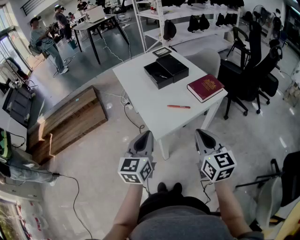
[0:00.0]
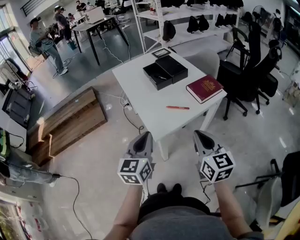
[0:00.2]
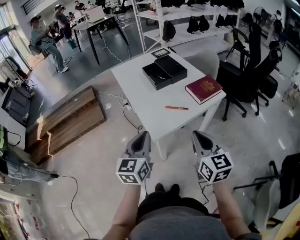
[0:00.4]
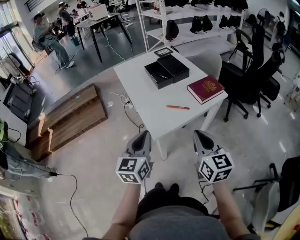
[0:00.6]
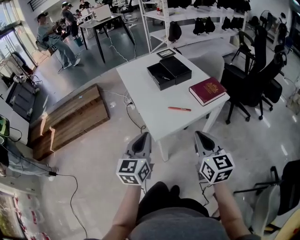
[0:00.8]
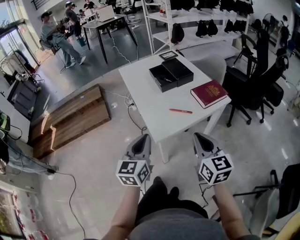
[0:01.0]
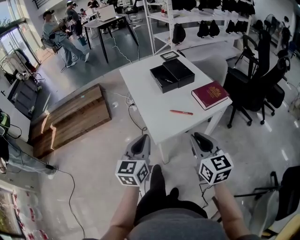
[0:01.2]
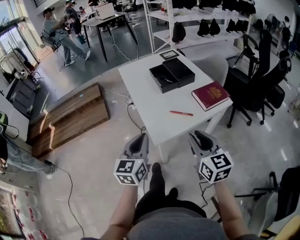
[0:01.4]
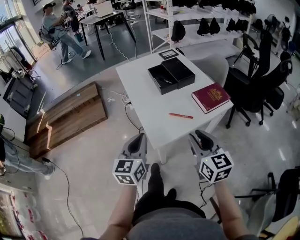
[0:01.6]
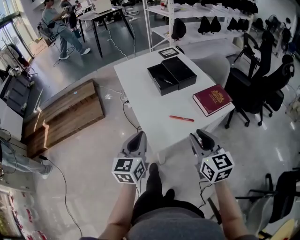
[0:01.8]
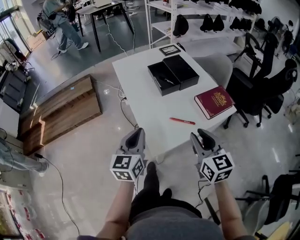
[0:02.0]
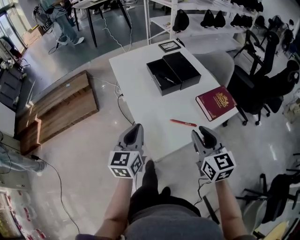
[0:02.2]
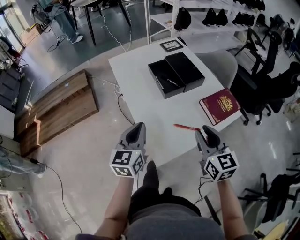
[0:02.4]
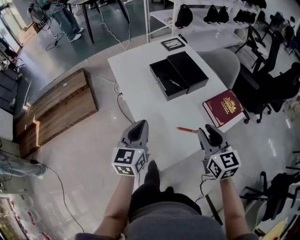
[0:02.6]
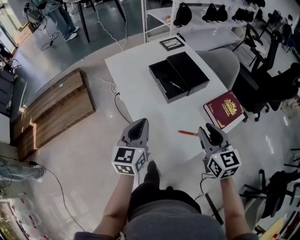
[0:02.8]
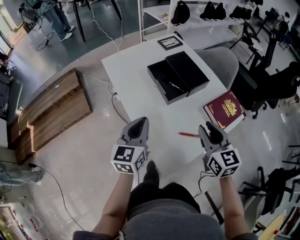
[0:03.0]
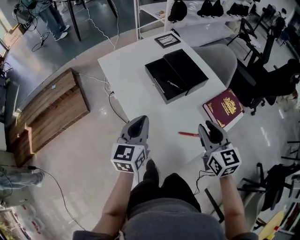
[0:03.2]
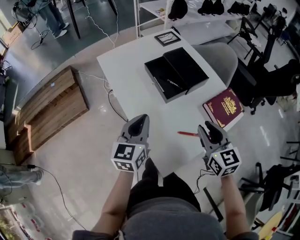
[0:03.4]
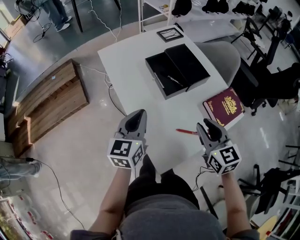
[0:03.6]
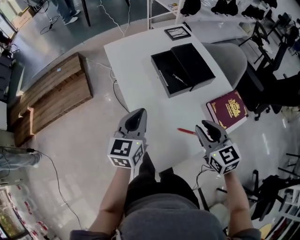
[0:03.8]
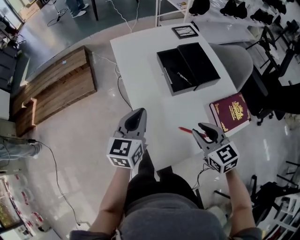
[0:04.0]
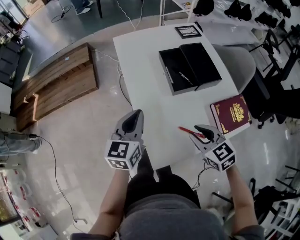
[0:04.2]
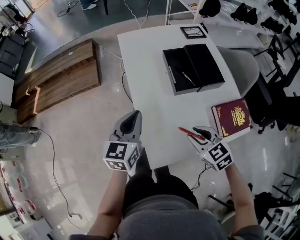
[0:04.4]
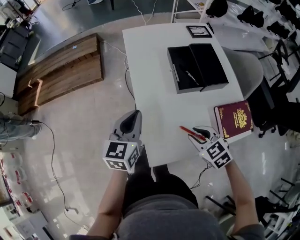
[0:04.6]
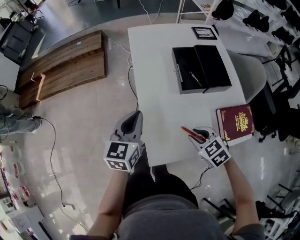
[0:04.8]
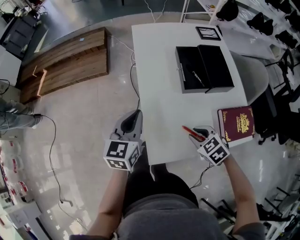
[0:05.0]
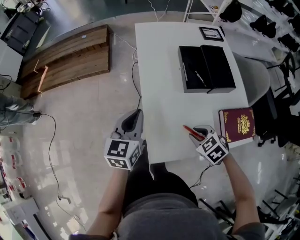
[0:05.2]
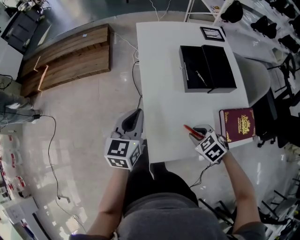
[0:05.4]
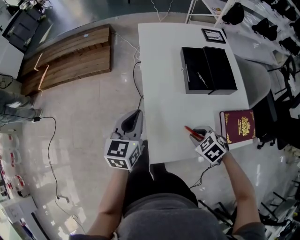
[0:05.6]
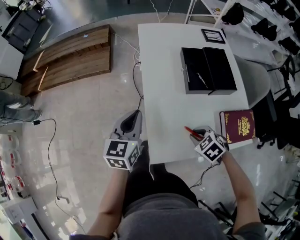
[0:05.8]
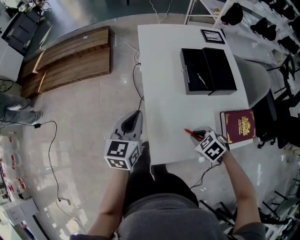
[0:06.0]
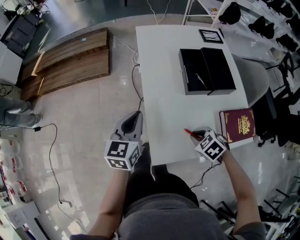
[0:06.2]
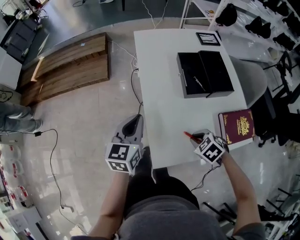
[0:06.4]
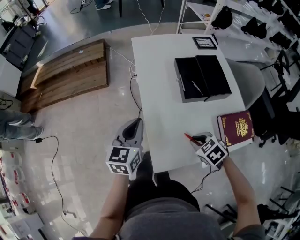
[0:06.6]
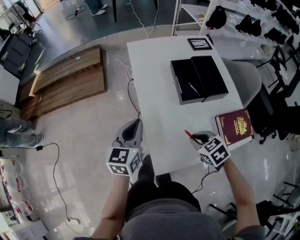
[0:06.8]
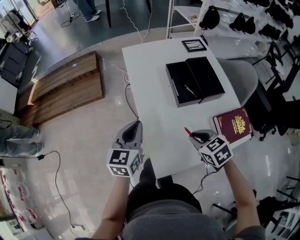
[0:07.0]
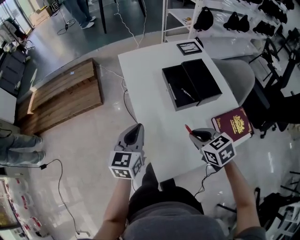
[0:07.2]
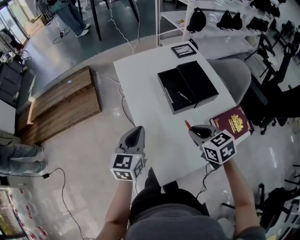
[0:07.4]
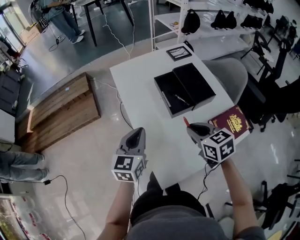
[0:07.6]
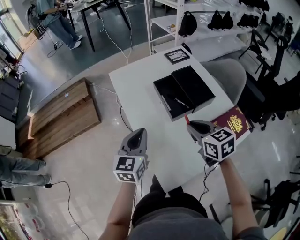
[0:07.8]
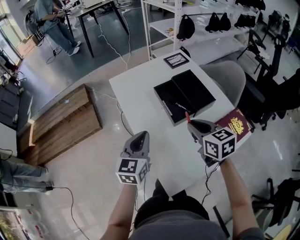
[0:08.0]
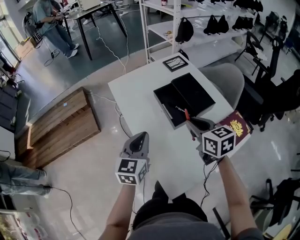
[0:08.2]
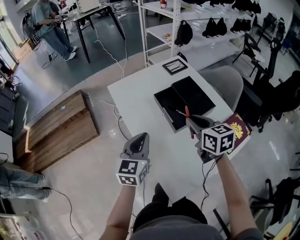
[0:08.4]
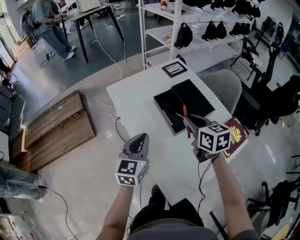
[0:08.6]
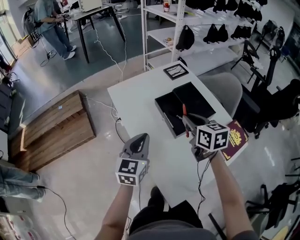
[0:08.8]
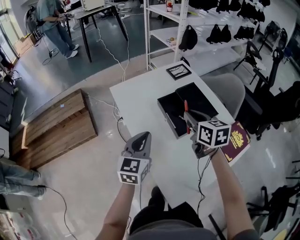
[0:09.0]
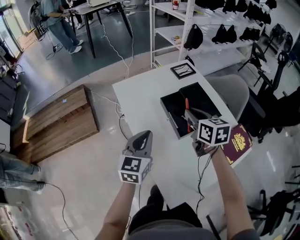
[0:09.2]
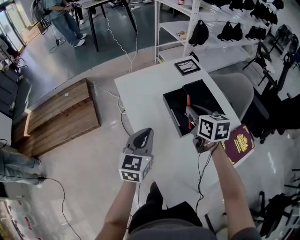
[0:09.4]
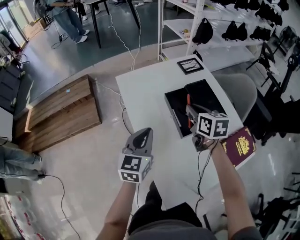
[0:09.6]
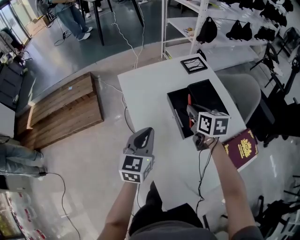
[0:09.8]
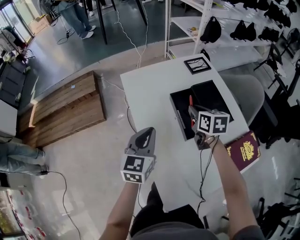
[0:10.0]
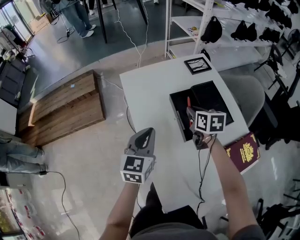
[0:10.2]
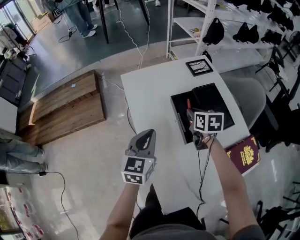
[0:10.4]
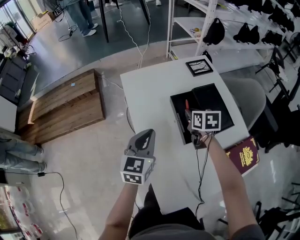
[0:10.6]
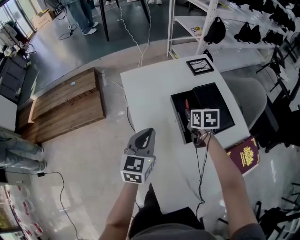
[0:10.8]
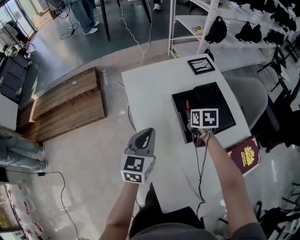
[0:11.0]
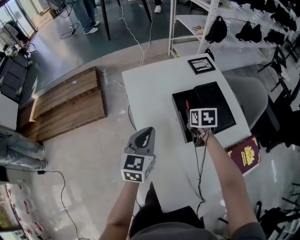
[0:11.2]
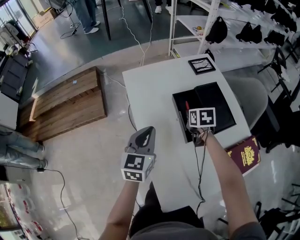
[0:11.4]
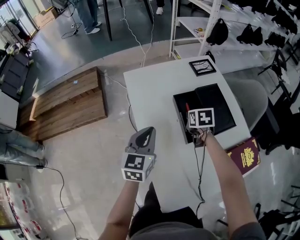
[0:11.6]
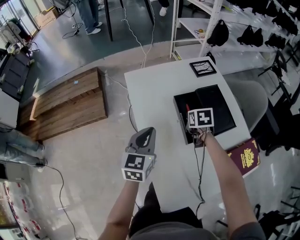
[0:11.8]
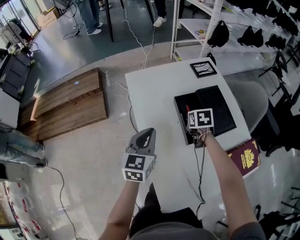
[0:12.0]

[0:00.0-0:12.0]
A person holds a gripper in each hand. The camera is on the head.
0:00.0 to 0:01.6: The left gripper ends up approximately 5 cm from where it was; the right gripper heads forward, covering about 5 cm, and opens.
0:01.6 to 0:03.0: Both grippers travel together forward, some 20 cm.
0:03.0 to 0:04.4: The right gripper heads downward, covering approximately 10 cm, and rotates some 50 degrees.
0:04.4 to 0:06.0: The right gripper travels downward by roughly 10 cm, and rotates approximately 30 degrees.
0:06.0 to 0:07.6: The right gripper is displaced upward and forward by approximately 15 cm, and tilts its fingers approximately 30 degrees upward. Meanwhile the left gripper moves to the right and forward, about 10 cm.
0:07.6 to 0:09.0: The right gripper travels forward by roughly 15 cm, and swivels about 20 degrees. Meanwhile the left gripper goes some 10 cm forward.
0:09.0 to 0:10.4: The right gripper goes roughly 15 cm downward and forward.
0:10.4 to 0:12.0: The right gripper heads downward, covering about 5 cm.

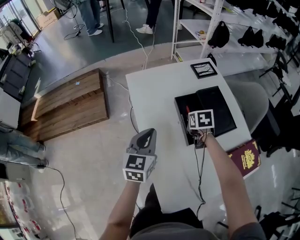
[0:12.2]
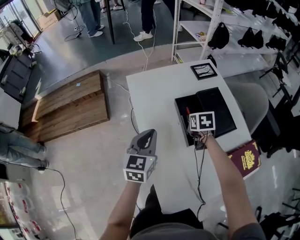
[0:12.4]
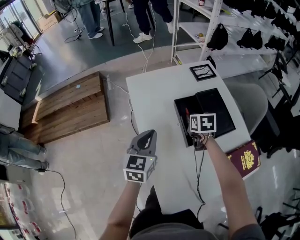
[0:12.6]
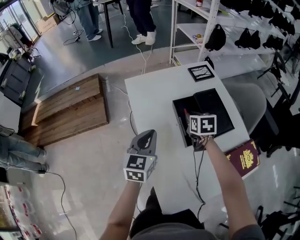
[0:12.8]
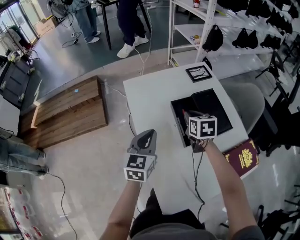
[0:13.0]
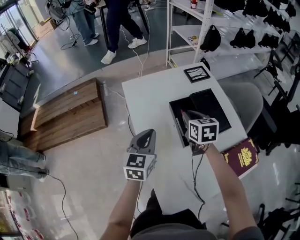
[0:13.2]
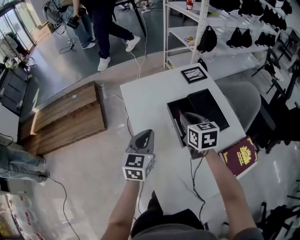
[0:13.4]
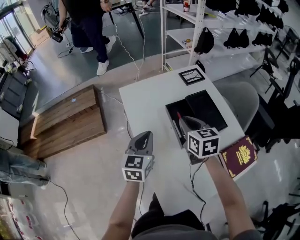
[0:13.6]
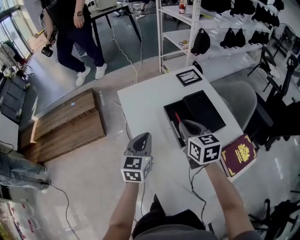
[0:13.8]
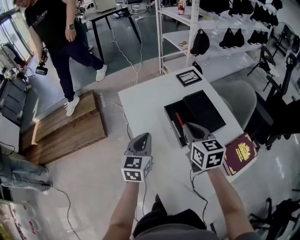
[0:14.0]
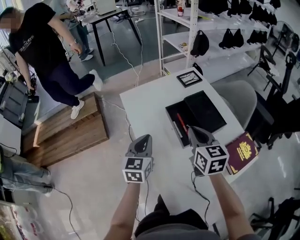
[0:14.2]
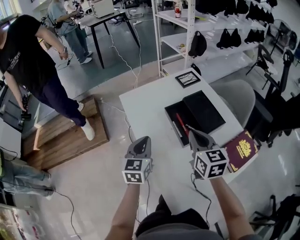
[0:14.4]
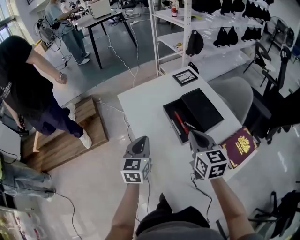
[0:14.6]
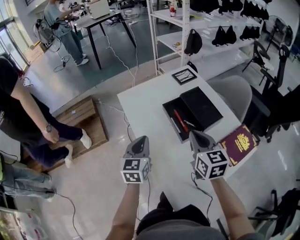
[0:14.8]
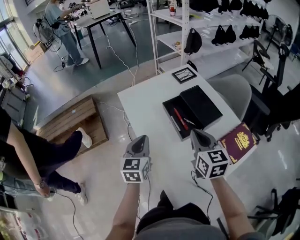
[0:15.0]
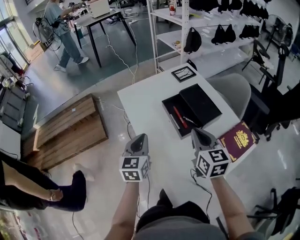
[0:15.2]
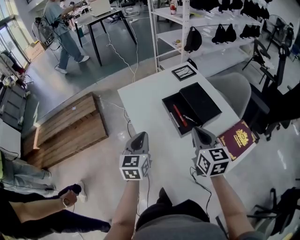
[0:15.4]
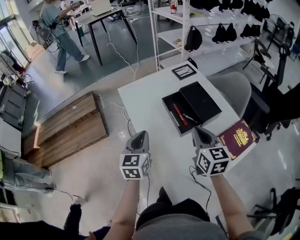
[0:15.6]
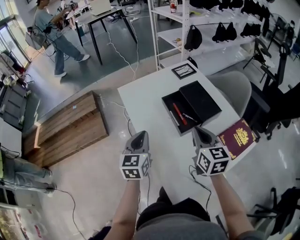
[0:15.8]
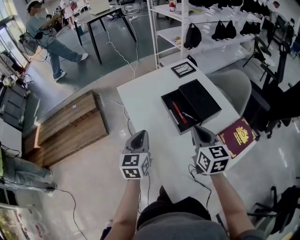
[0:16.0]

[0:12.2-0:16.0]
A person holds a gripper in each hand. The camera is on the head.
0:12.2 to 0:13.4: The right gripper is displaced upward by about 15 cm, and rotates some 20 degrees.
0:13.4 to 0:14.8: The right gripper moves backward, about 15 cm.
0:14.8 to 0:16.0: The grippers make only small movements.

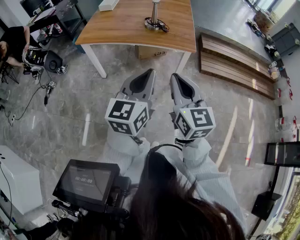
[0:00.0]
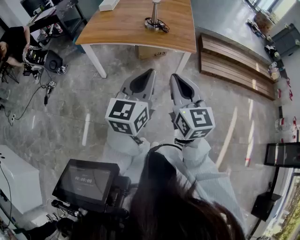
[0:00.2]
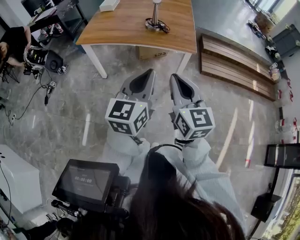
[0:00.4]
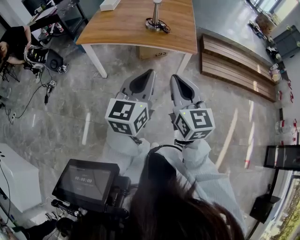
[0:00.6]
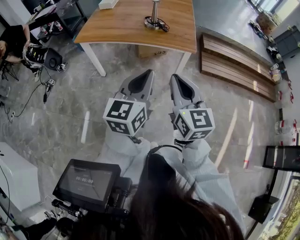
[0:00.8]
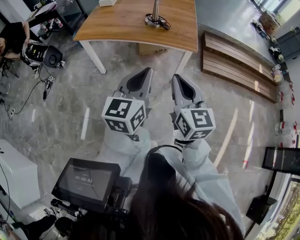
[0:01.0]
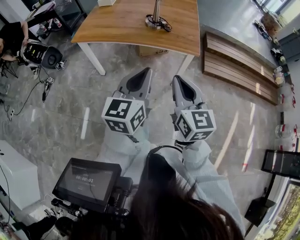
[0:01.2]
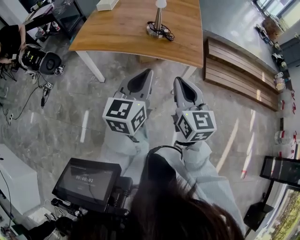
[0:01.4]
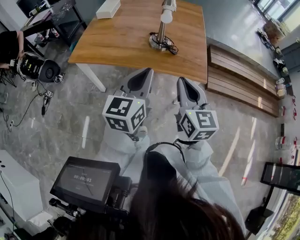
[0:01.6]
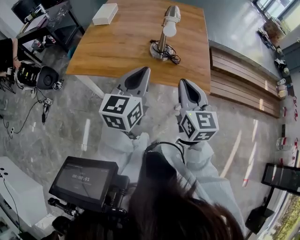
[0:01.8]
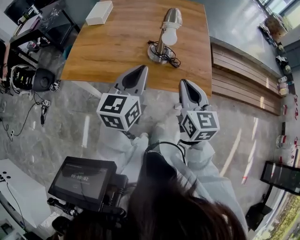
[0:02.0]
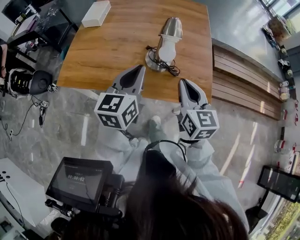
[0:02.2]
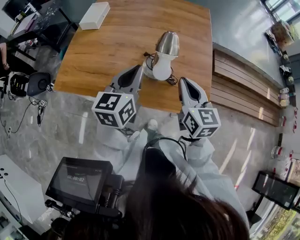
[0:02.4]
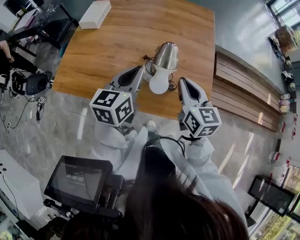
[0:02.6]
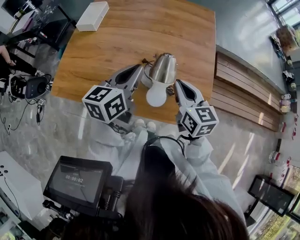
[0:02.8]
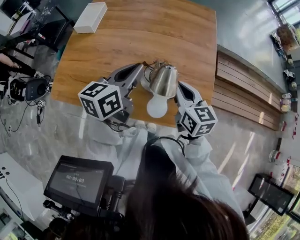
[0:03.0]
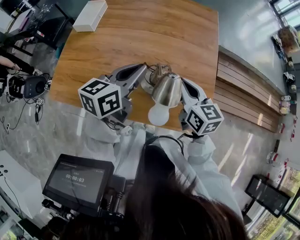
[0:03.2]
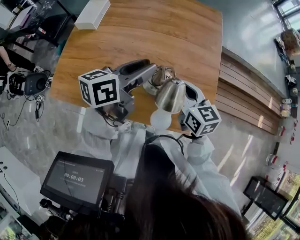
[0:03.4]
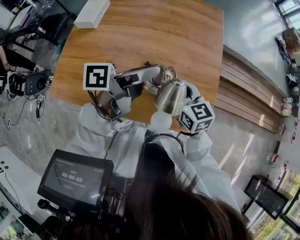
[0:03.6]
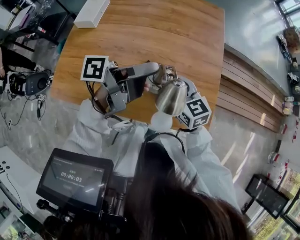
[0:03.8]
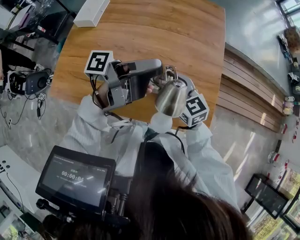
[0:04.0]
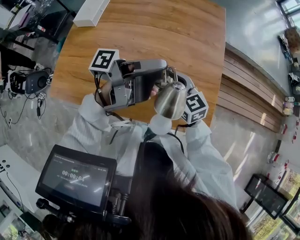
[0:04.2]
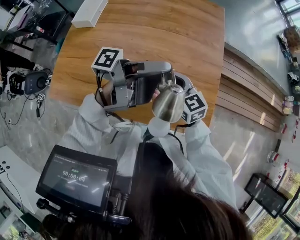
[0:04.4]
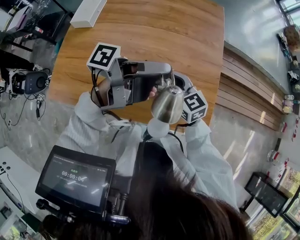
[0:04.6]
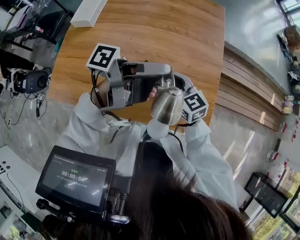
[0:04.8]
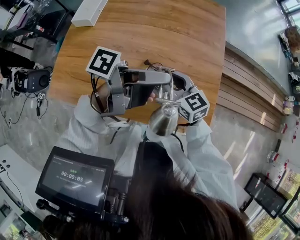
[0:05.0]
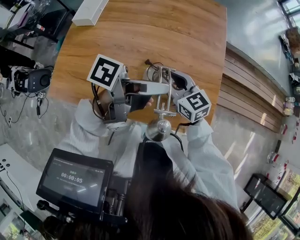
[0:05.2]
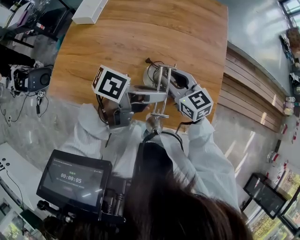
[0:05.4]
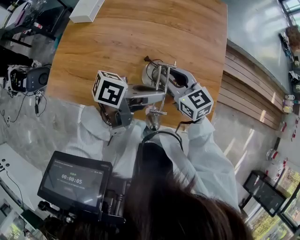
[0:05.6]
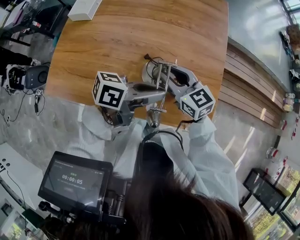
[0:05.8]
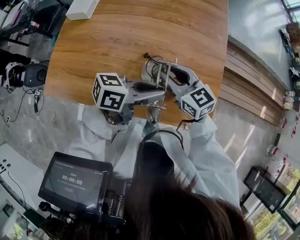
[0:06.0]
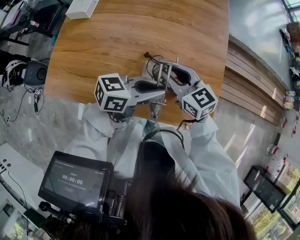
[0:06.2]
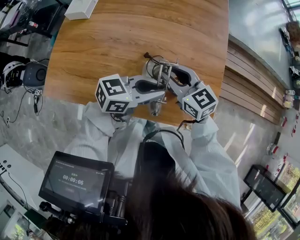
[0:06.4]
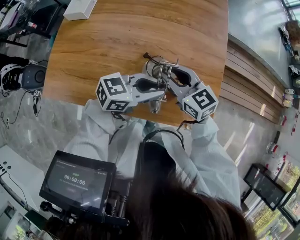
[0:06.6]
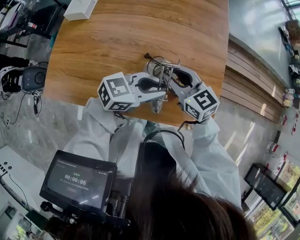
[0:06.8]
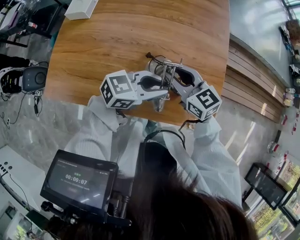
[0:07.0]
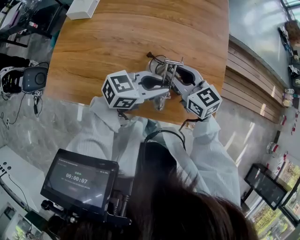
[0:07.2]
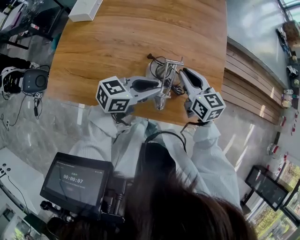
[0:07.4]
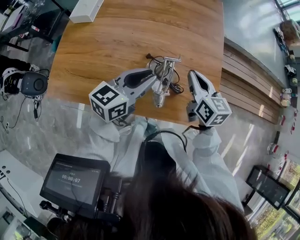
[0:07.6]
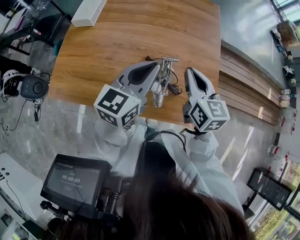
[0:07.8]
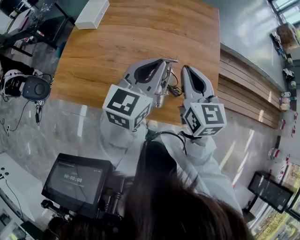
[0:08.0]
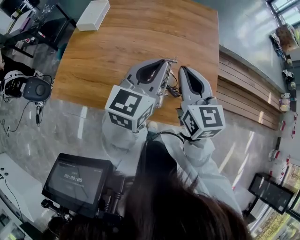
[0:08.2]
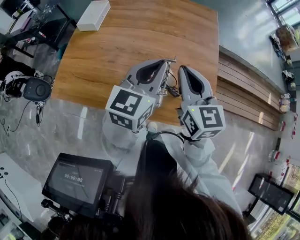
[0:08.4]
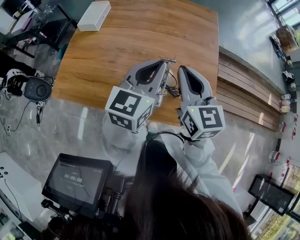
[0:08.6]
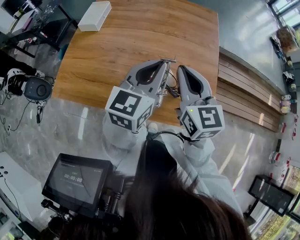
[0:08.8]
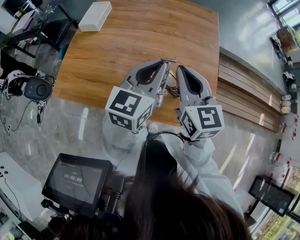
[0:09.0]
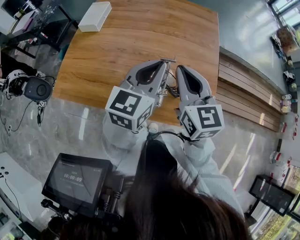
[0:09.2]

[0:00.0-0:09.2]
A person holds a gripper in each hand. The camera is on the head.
0:00.0 to 0:01.6: The grippers both shift forward by approximately 30 cm.
0:01.6 to 0:03.0: Both grippers are carried forward, about 40 cm. The left gripper rotates roughly 20 degrees.
0:03.0 to 0:04.6: The right gripper shifts some 10 cm to the left and downward, changes its angle by about 20 degrees, and opens up. Meanwhile the left gripper is displaced to the right by some 5 cm, changes its angle by about 80 degrees, and opens its fingers.
0:04.6 to 0:06.2: The left gripper heads downward, covering about 10 cm, rotates around the line of its fingers by approximately 50 degrees, clockwise from behind, and closes.
0:06.2 to 0:07.6: The right gripper ends up approximately 10 cm from where it was, turns by about 30 degrees, and closes; the left gripper shifts by some 10 cm, and changes its angle by about 30 degrees.
0:07.6 to 0:09.2: The right gripper shifts roughly 15 cm upward and to the left, while the left gripper is displaced upward by approximately 10 cm, and swivels some 20 degrees.
